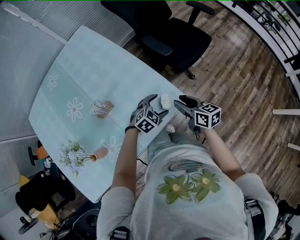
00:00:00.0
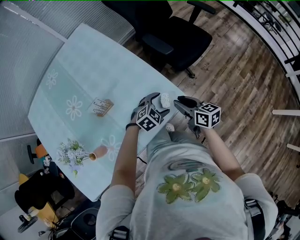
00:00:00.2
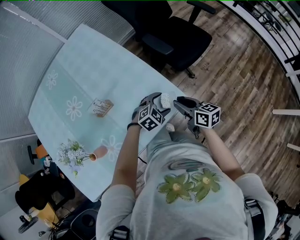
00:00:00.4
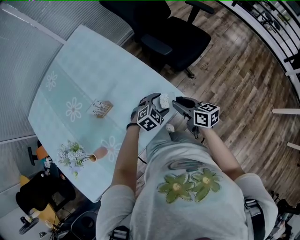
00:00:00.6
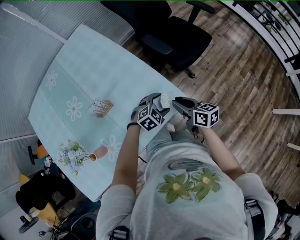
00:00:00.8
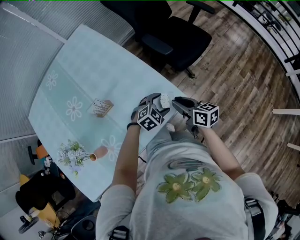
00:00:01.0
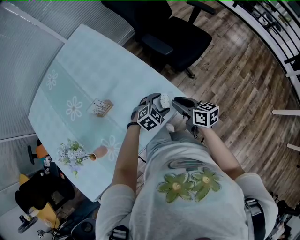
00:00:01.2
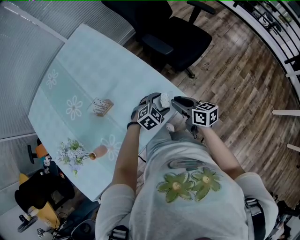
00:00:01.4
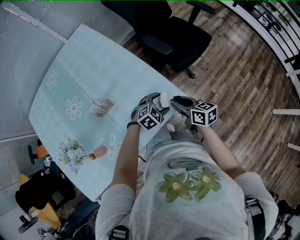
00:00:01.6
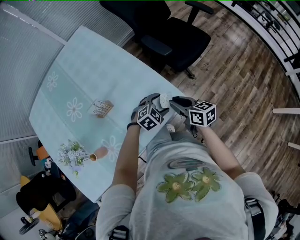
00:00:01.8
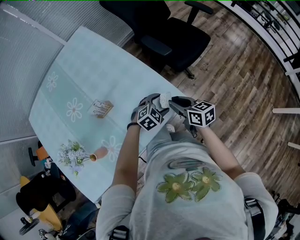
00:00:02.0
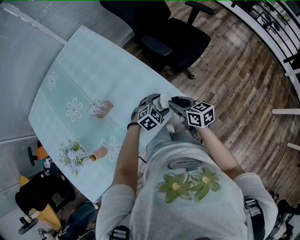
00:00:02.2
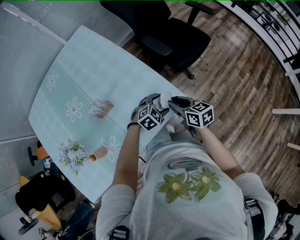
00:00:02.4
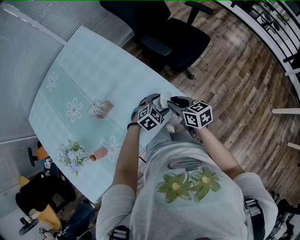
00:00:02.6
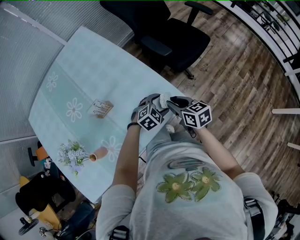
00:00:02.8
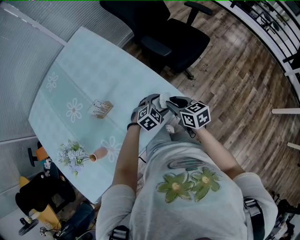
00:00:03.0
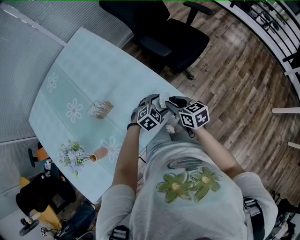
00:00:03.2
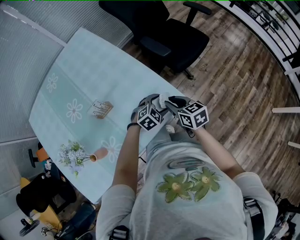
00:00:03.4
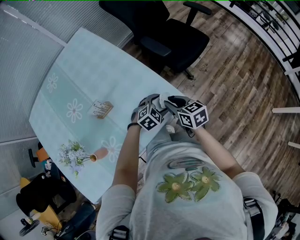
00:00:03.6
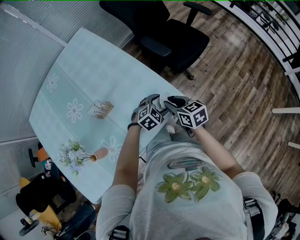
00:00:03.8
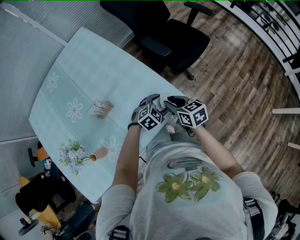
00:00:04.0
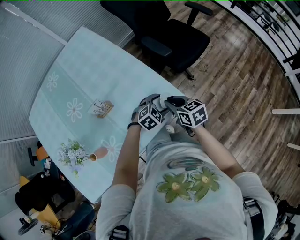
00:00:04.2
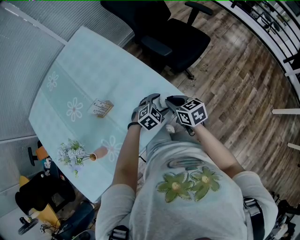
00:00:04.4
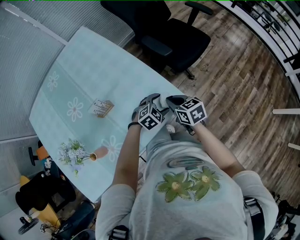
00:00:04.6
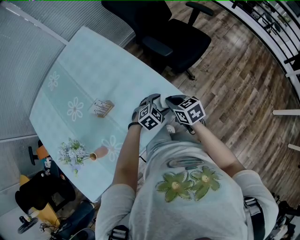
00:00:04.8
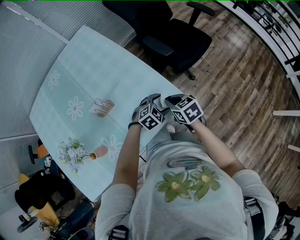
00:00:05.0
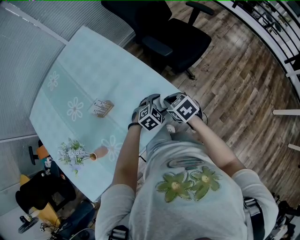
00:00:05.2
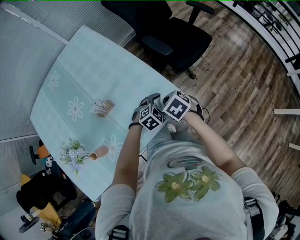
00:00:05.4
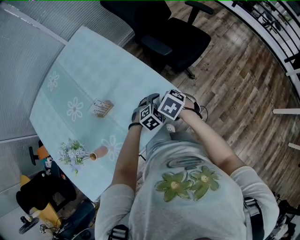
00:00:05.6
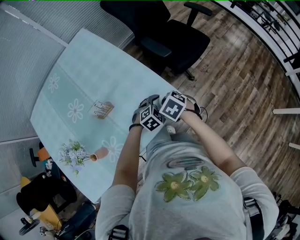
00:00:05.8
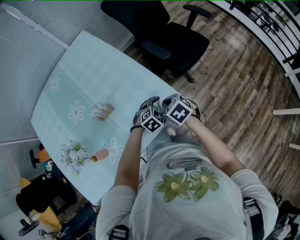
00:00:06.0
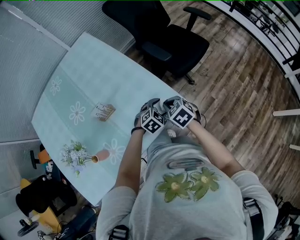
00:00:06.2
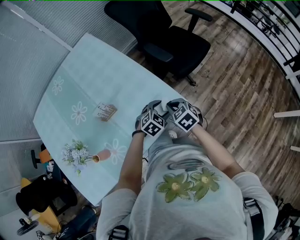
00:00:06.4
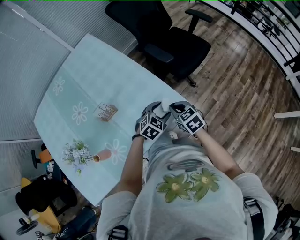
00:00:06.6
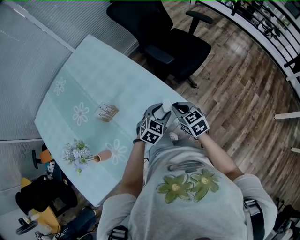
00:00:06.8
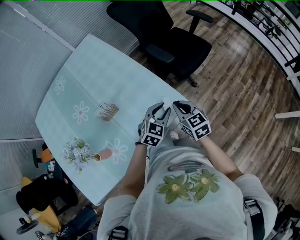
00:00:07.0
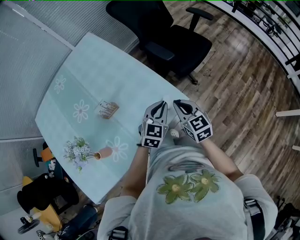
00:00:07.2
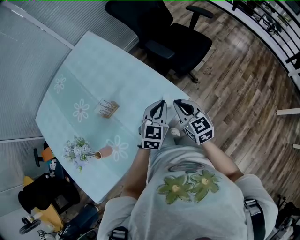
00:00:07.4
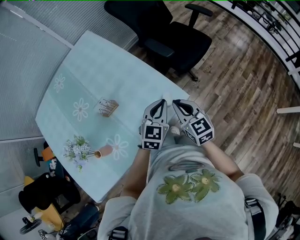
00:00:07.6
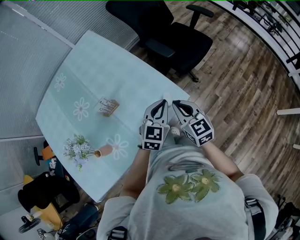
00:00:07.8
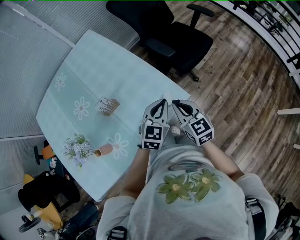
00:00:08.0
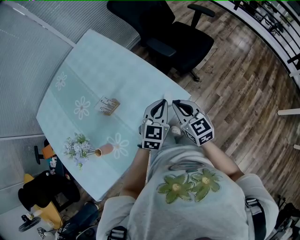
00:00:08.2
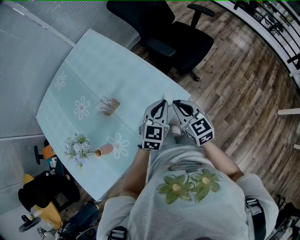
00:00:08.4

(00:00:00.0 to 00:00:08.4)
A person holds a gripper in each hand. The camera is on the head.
00:00:00.0 - 00:00:02.8: There are only small adjustments of the grippers.
00:00:02.8 - 00:00:04.2: Neither gripper changes place.
00:00:04.2 - 00:00:05.6: The right gripper tilts its fingers roughly 30 degrees downward.
00:00:05.6 - 00:00:07.0: The left gripper goes roughly 10 cm upward, turns by some 30 degrees, and closes its fingers, while the right gripper travels upward by approximately 5 cm, and tips its fingers upward by approximately 40 degrees.
00:00:07.0 - 00:00:08.4: The left gripper travels upward by approximately 5 cm.

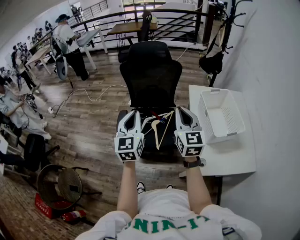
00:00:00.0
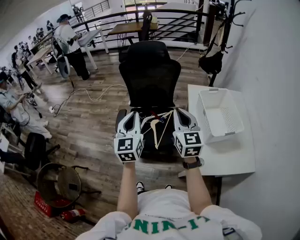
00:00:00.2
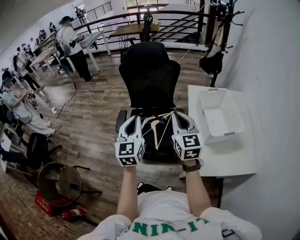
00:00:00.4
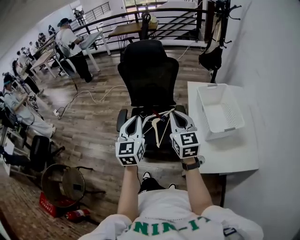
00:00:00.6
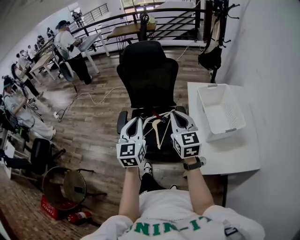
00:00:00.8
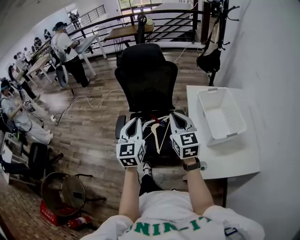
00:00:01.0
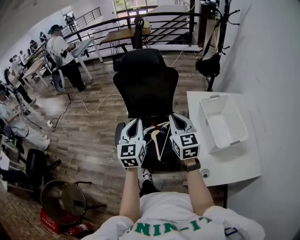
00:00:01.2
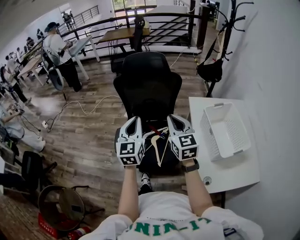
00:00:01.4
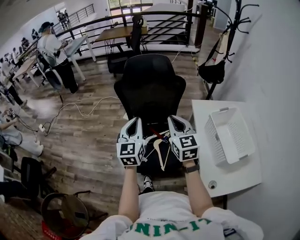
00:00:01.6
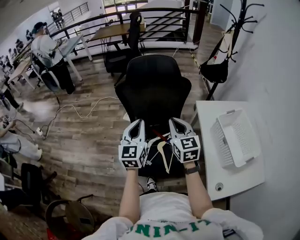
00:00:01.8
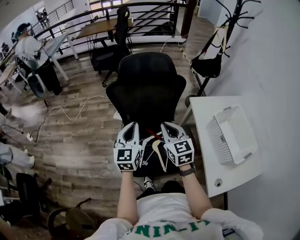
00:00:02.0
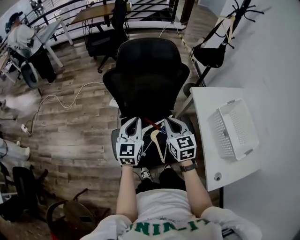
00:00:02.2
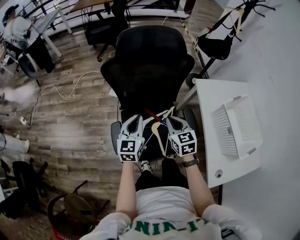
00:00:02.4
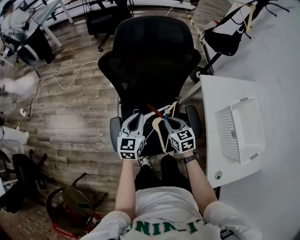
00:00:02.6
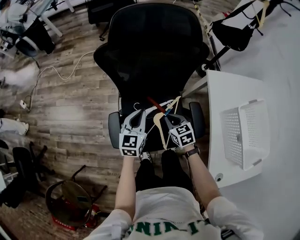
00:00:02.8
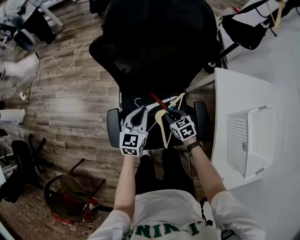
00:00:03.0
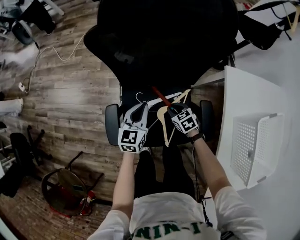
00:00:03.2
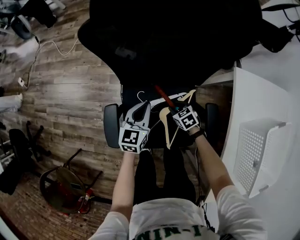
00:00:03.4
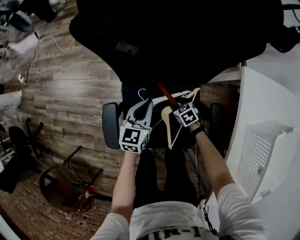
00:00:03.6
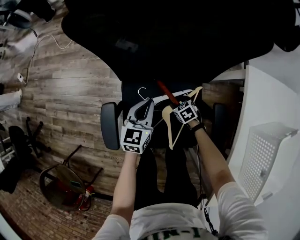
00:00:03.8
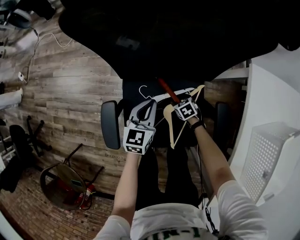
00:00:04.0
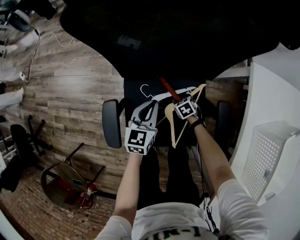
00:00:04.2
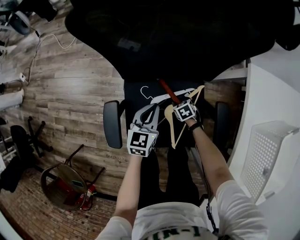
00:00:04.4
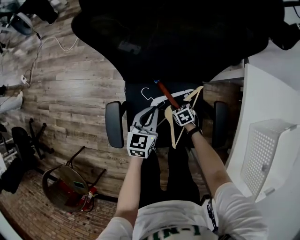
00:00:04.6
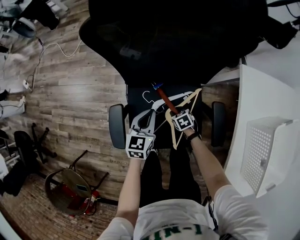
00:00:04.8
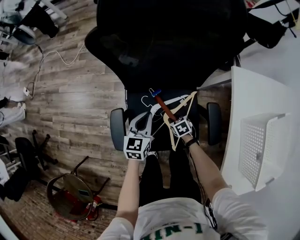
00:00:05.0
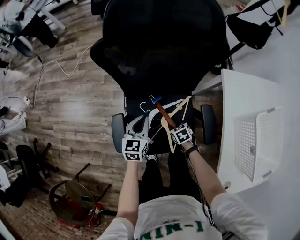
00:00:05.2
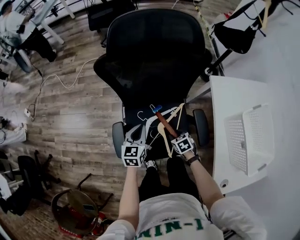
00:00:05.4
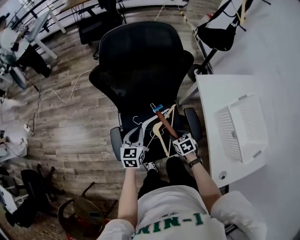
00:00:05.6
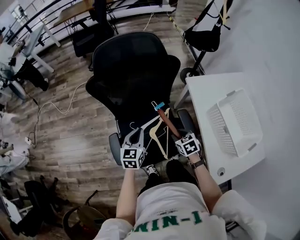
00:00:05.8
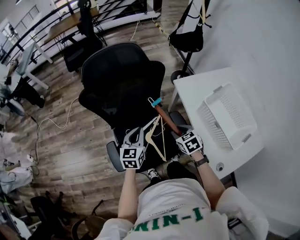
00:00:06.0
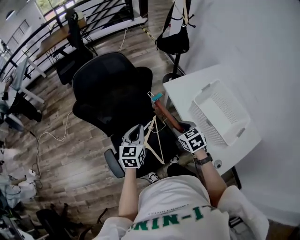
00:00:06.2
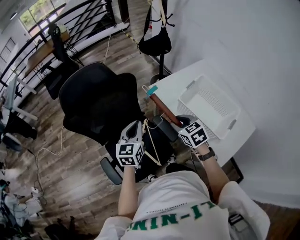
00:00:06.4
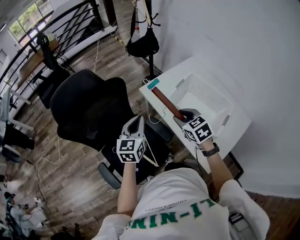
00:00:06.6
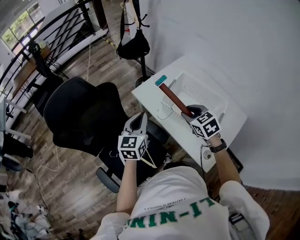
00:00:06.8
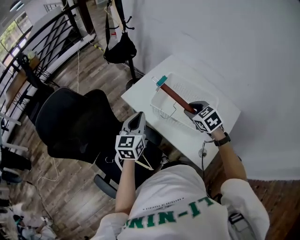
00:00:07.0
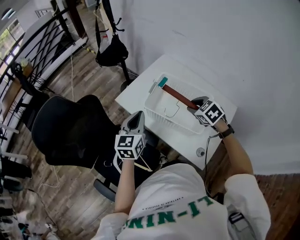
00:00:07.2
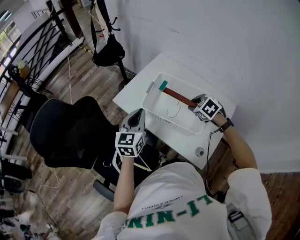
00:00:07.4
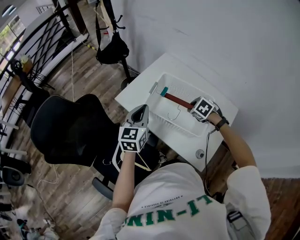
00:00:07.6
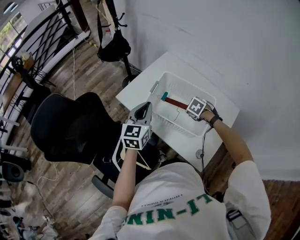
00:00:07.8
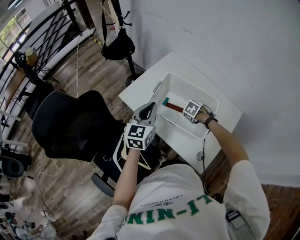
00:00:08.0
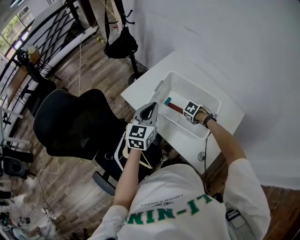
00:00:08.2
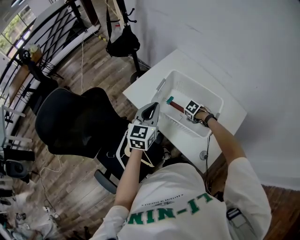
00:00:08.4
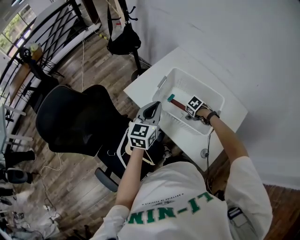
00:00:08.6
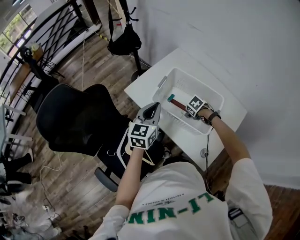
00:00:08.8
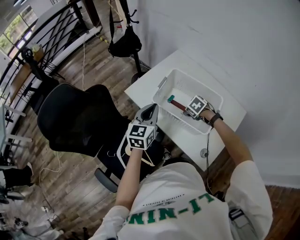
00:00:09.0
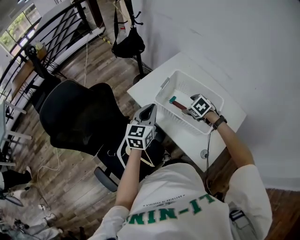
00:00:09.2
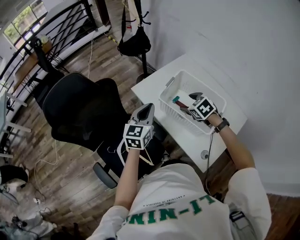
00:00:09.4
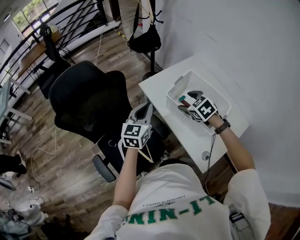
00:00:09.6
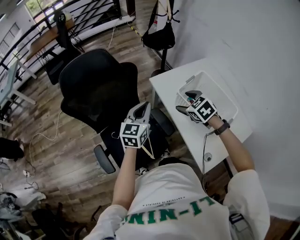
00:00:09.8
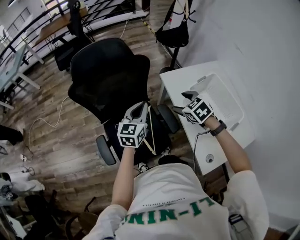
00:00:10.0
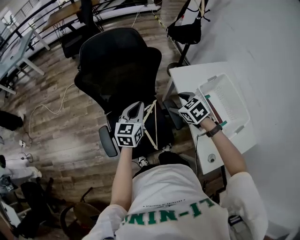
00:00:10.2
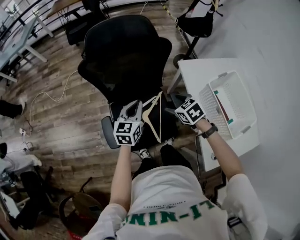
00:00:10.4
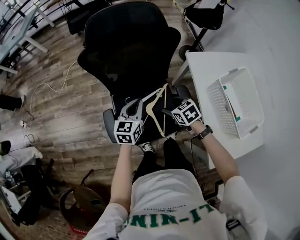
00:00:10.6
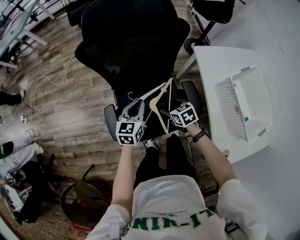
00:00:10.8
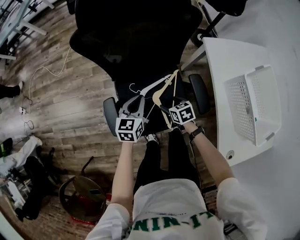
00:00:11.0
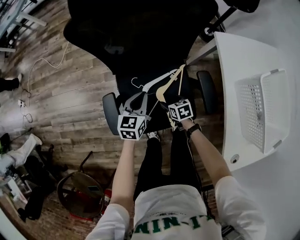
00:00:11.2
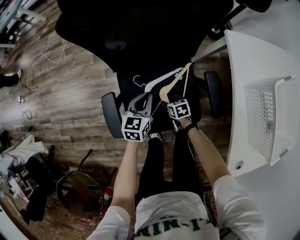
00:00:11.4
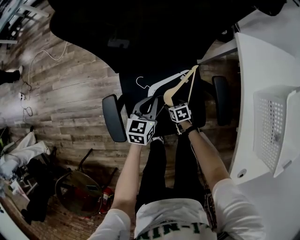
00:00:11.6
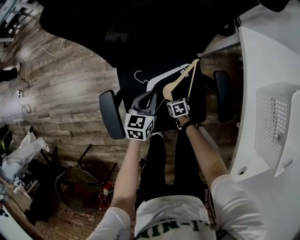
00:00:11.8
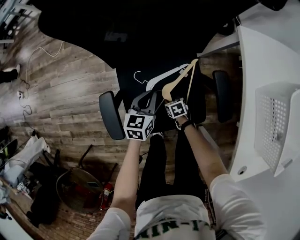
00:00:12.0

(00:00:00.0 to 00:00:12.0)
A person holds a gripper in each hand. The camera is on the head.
00:00:00.0 - 00:00:01.6: The two grippers go approximately 20 cm forward.
00:00:01.6 - 00:00:03.0: The left gripper moves downward and forward, roughly 35 cm, and changes its angle by approximately 20 degrees, while the right gripper goes about 50 cm downward, and tilts its fingers roughly 40 degrees downward.
00:00:03.0 - 00:00:04.4: The right gripper is displaced downward by some 30 cm; the left gripper travels downward by some 20 cm.
00:00:04.4 - 00:00:06.0: The left gripper moves upward, some 30 cm. Meanwhile the right gripper goes about 50 cm upward, and changes its angle by roughly 30 degrees.
00:00:06.0 - 00:00:07.6: The right gripper changes place by approximately 40 cm, and rotates approximately 20 degrees, while the left gripper changes place by roughly 40 cm, and swivels some 40 degrees.
00:00:07.6 - 00:00:09.0: The right gripper moves downward, some 5 cm, and opens up.
00:00:09.0 - 00:00:10.4: The right gripper moves about 15 cm upward and comes back, and swivels about 40 degrees. Meanwhile the left gripper changes place by approximately 35 cm, and changes its angle by about 40 degrees.
00:00:10.4 - 00:00:12.0: The right gripper travels downward by about 50 cm, turns by about 20 degrees, and closes its fingers; the left gripper travels downward by some 35 cm.

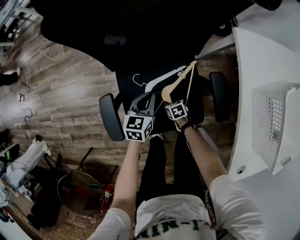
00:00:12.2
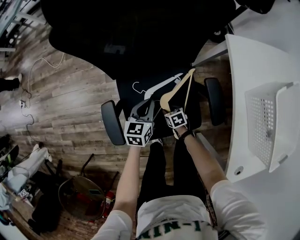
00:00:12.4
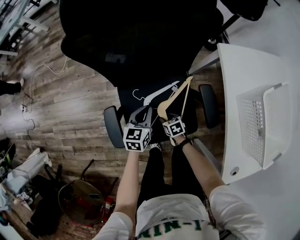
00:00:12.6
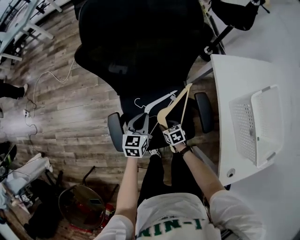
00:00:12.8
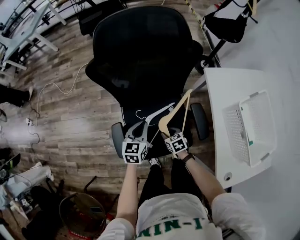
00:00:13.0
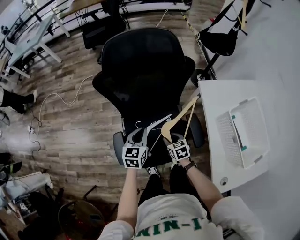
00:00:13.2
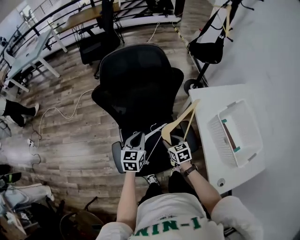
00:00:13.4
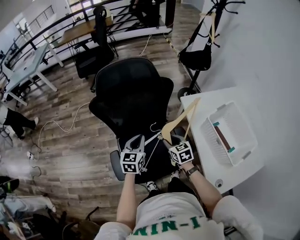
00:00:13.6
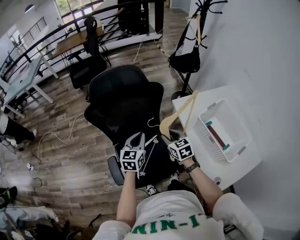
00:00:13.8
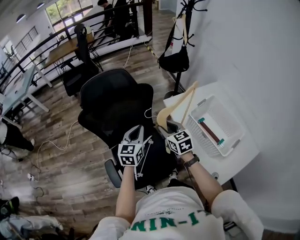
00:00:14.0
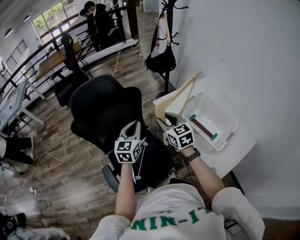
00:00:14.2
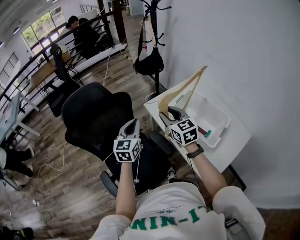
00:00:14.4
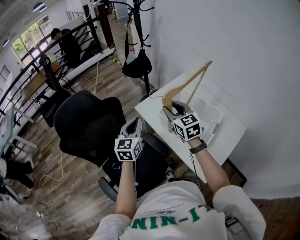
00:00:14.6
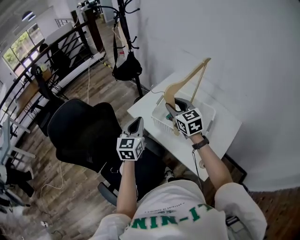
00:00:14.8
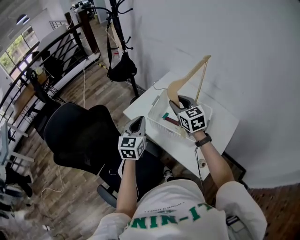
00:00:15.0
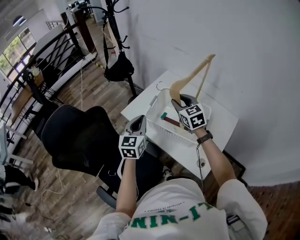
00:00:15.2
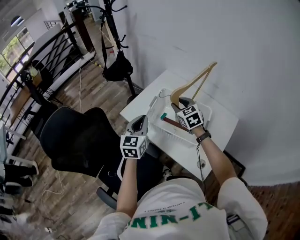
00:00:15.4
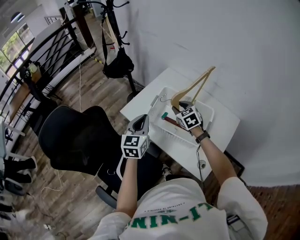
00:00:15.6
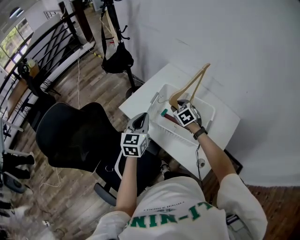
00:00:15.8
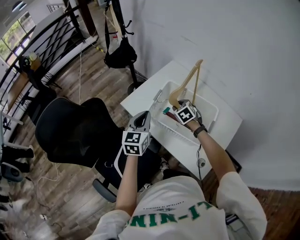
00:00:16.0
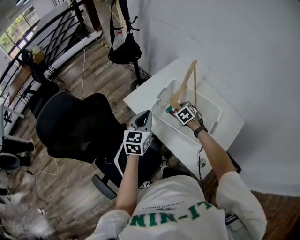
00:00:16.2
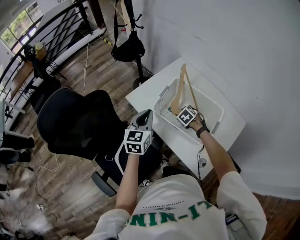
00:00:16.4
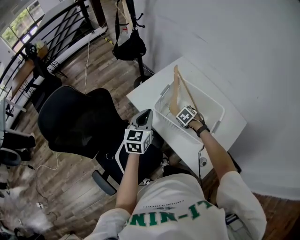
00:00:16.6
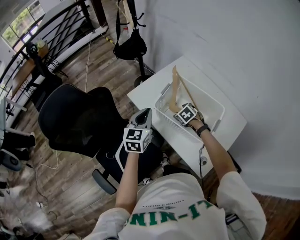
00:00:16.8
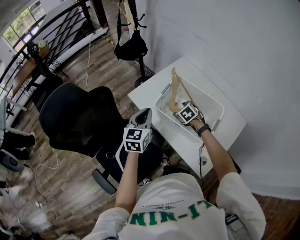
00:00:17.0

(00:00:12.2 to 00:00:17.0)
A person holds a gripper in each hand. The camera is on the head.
00:00:12.2 - 00:00:13.8: The grippers both shift upward by approximately 50 cm. The right gripper tips its fingers upward by some 30 degrees.
00:00:13.8 - 00:00:15.4: The right gripper ends up roughly 40 cm from where it was, and swivels some 40 degrees, while the left gripper ends up some 35 cm from where it was, and swivels roughly 30 degrees.
00:00:15.4 - 00:00:17.0: The left gripper shifts by about 5 cm. Meanwhile the right gripper moves downward, approximately 20 cm, angles its fingers downward, by some 30 degrees, and opens up.
